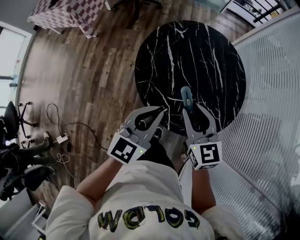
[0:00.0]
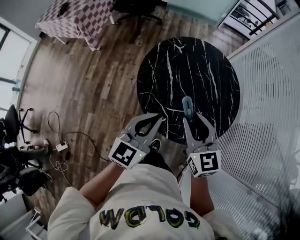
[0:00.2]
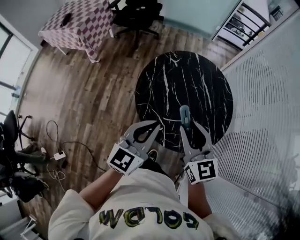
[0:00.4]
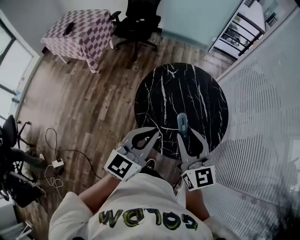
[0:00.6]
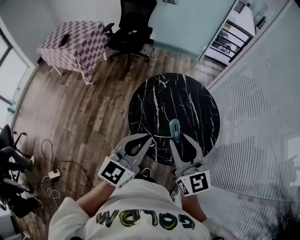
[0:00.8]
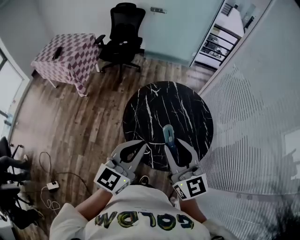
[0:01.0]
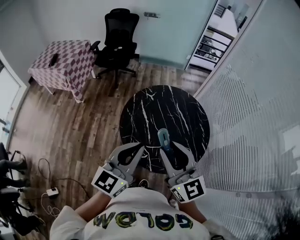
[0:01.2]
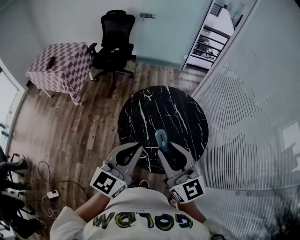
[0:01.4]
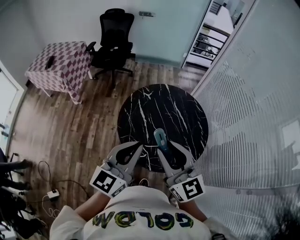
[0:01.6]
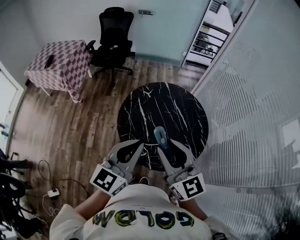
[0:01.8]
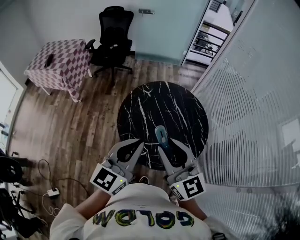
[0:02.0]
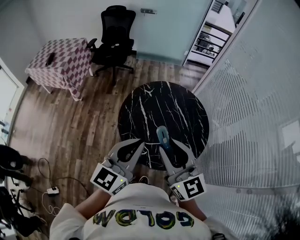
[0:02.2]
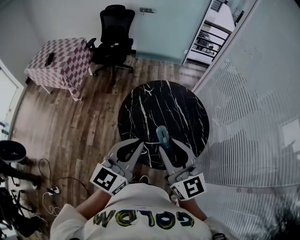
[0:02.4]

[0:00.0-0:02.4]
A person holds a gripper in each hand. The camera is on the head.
0:00.0 to 0:01.2: The grippers both shift upward by approximately 20 cm. The right gripper swivels about 30 degrees.
0:01.2 to 0:02.4: Neither gripper changes place.

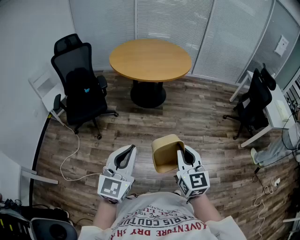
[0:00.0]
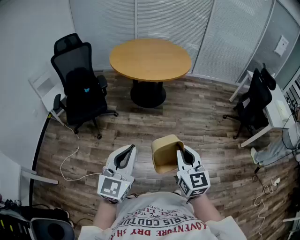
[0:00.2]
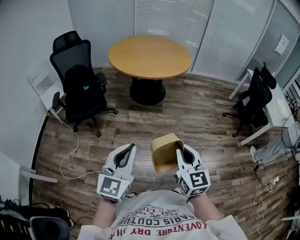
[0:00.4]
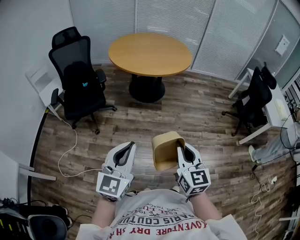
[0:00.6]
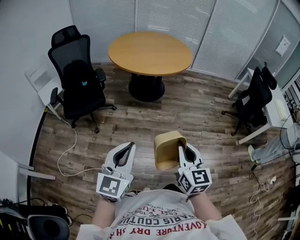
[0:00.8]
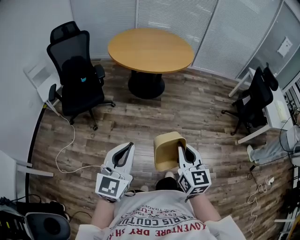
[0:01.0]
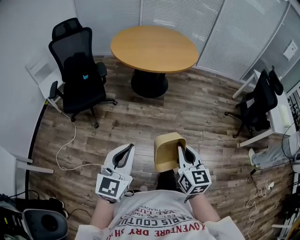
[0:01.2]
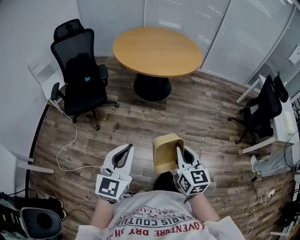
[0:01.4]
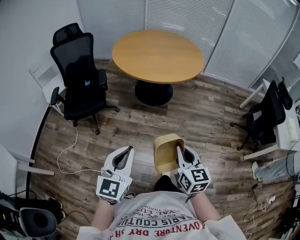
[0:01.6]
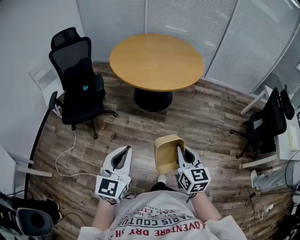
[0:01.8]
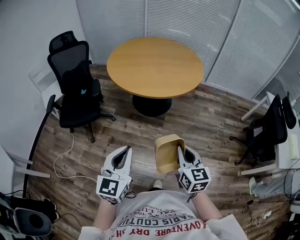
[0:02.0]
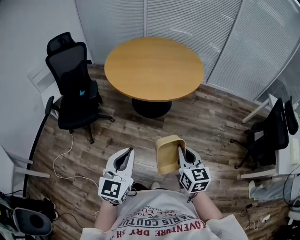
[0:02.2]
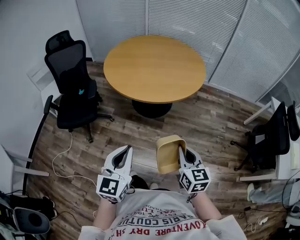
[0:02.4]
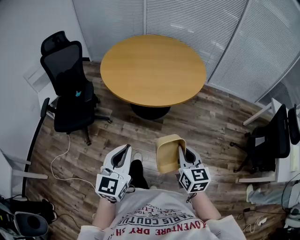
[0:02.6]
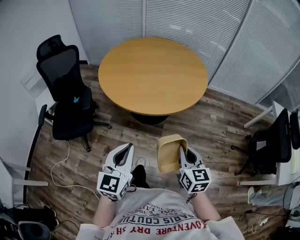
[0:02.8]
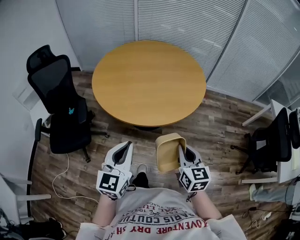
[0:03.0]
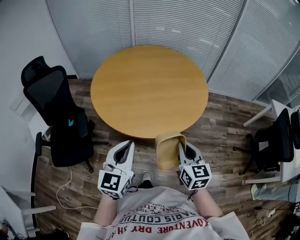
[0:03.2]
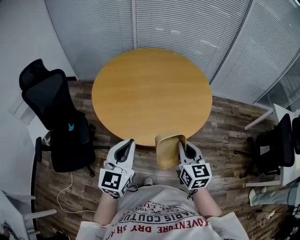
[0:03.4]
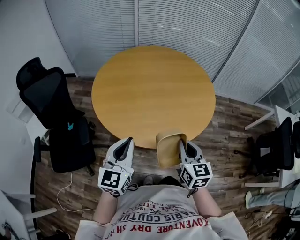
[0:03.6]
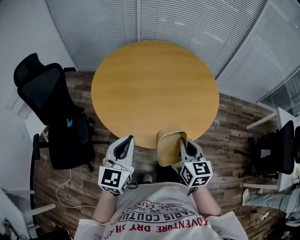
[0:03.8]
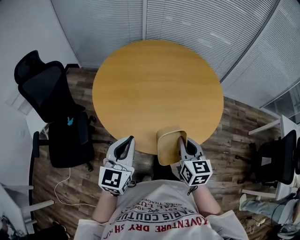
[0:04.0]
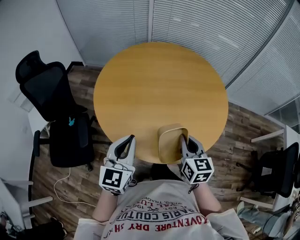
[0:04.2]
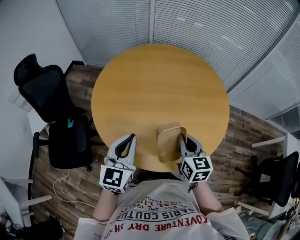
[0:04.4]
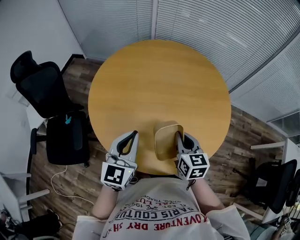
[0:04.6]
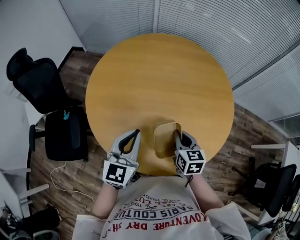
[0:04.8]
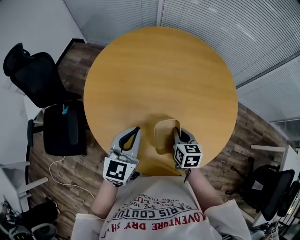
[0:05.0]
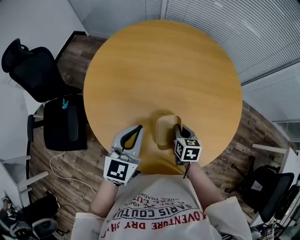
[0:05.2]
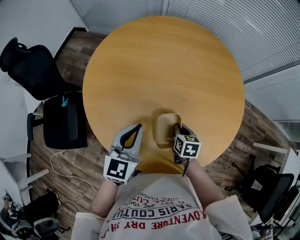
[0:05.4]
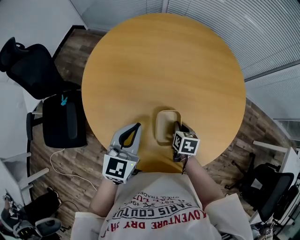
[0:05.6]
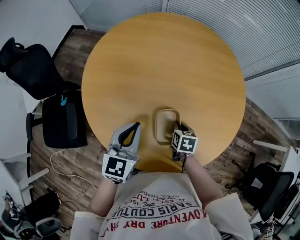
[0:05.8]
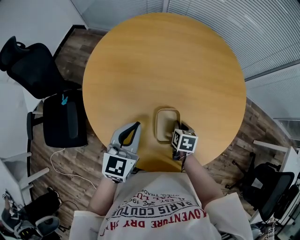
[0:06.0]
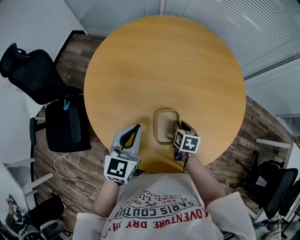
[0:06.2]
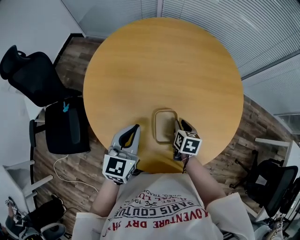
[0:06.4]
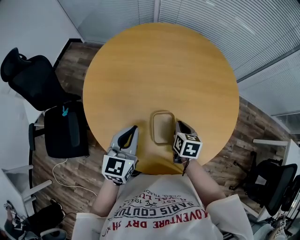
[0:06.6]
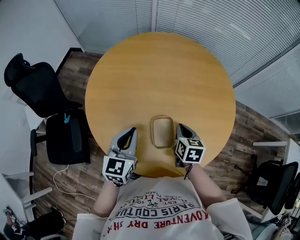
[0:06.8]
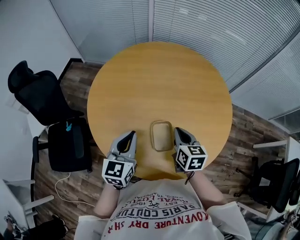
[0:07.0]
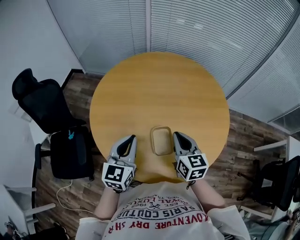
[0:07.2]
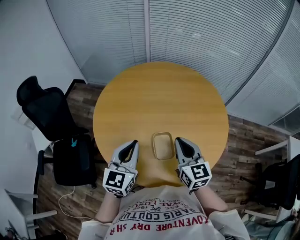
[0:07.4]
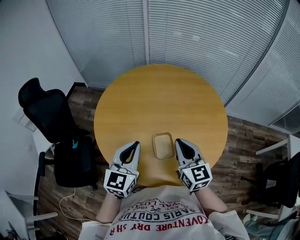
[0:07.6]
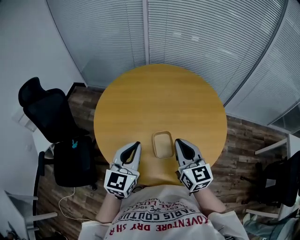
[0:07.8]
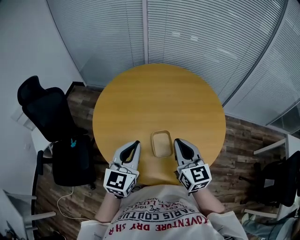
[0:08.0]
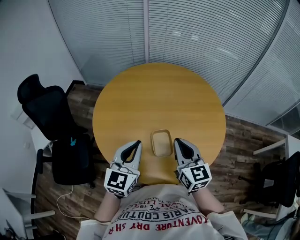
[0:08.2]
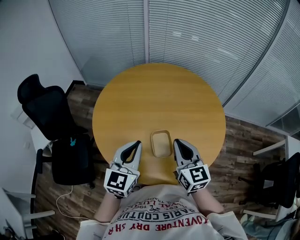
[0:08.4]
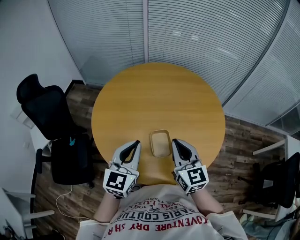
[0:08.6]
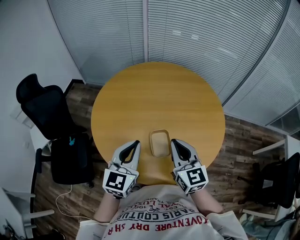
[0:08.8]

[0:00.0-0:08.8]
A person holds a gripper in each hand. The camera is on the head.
0:00.0 to 0:01.4: The left gripper heads forward, covering approximately 10 cm. The right gripper heads forward and downward, covering some 10 cm.
0:01.4 to 0:03.0: Both grippers are carried forward, roughly 50 cm.
0:03.0 to 0:04.4: Both grippers travel together forward, about 35 cm.
0:04.4 to 0:05.8: The right gripper is displaced downward and forward by approximately 25 cm, and tilts its fingers approximately 30 degrees downward. Meanwhile the left gripper moves forward and downward, approximately 15 cm.
0:05.8 to 0:07.4: The right gripper heads upward, covering approximately 30 cm, tilts its fingers about 50 degrees upward, and opens and closes again; the left gripper travels upward and backward by roughly 15 cm.
0:07.4 to 0:08.8: The grippers move only a little.

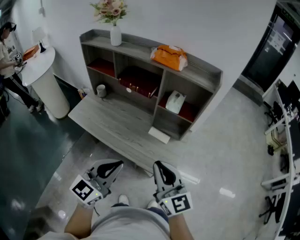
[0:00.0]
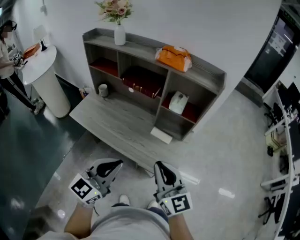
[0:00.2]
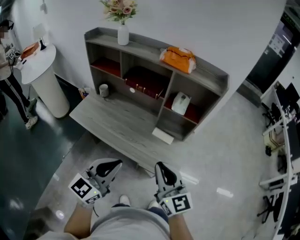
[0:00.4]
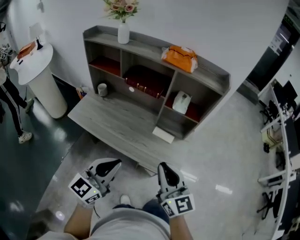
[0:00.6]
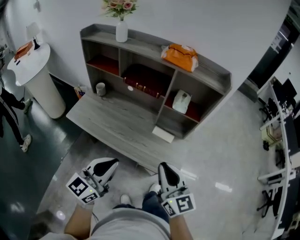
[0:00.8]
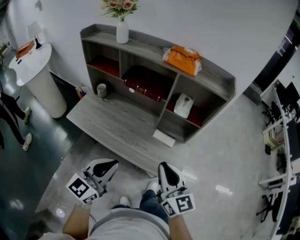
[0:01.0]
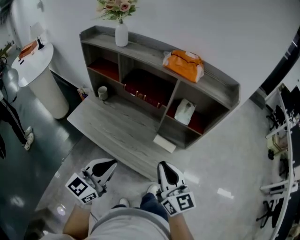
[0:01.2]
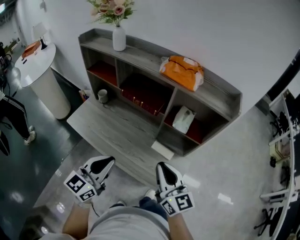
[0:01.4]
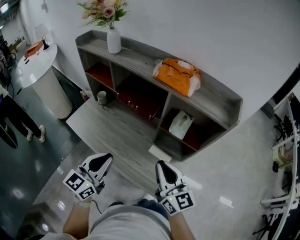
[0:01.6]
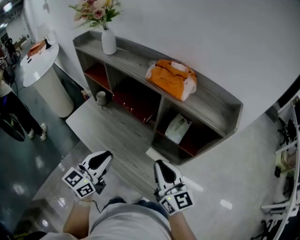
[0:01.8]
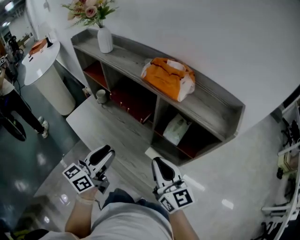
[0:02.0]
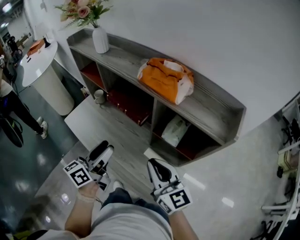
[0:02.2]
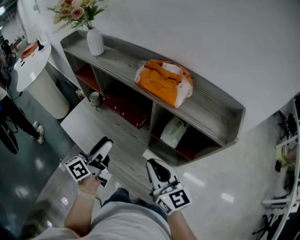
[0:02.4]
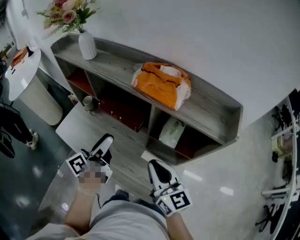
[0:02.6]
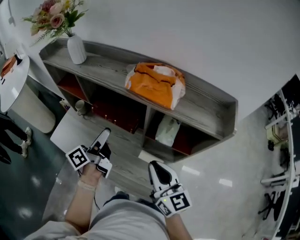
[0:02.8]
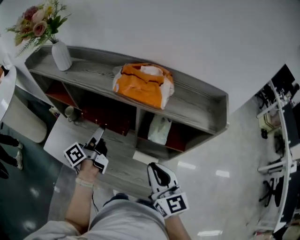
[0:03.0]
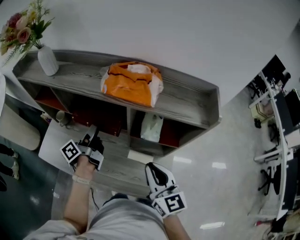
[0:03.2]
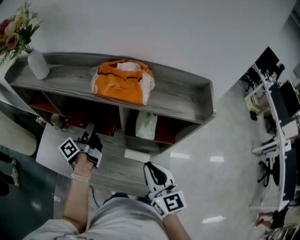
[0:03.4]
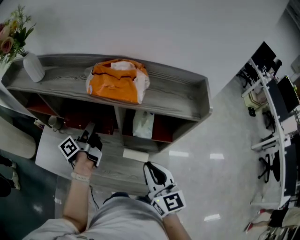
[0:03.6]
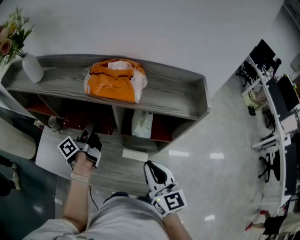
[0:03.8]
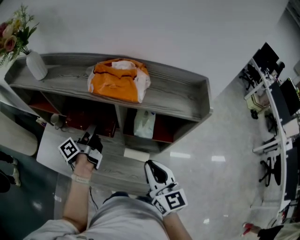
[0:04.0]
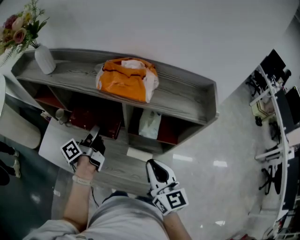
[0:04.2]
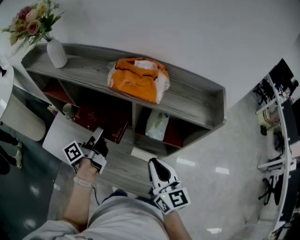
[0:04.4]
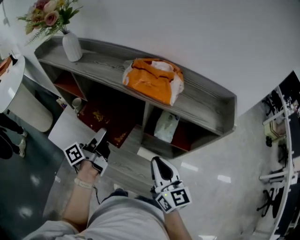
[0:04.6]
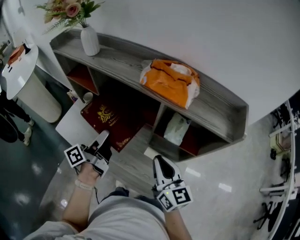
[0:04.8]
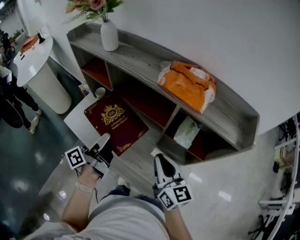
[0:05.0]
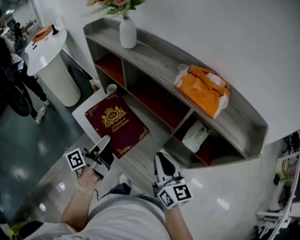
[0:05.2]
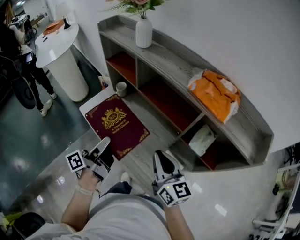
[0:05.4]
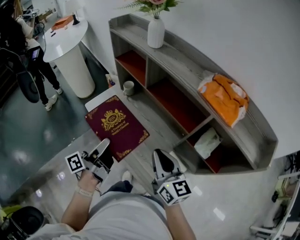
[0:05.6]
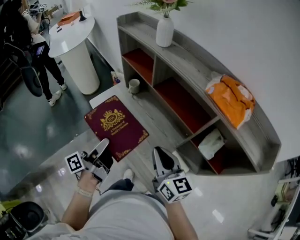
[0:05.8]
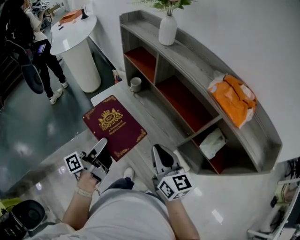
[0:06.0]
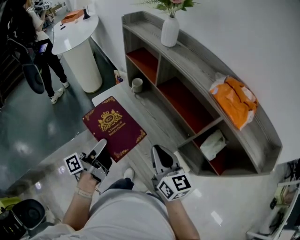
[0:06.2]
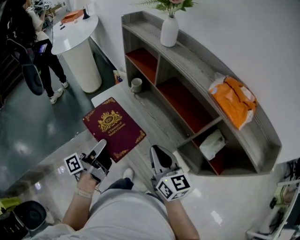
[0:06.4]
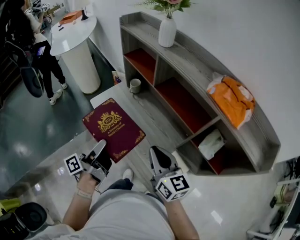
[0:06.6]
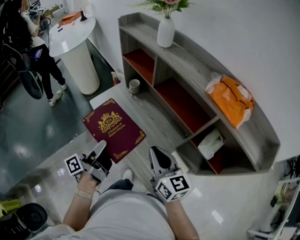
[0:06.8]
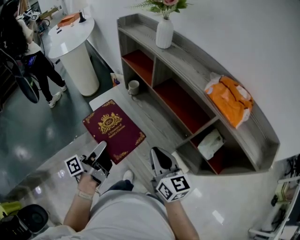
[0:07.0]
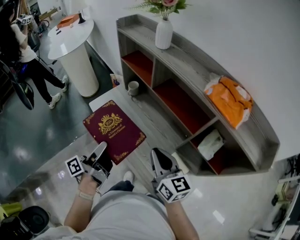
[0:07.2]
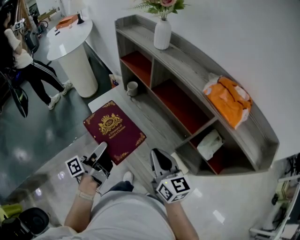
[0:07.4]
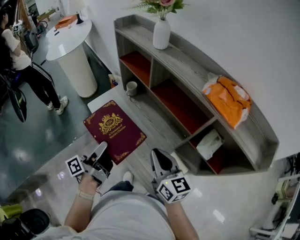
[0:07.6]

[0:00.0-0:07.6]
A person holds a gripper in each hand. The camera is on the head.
0:00.0 to 0:01.6: Both grippers travel together forward, roughly 15 cm.
0:01.6 to 0:03.0: The right gripper shifts roughly 5 cm forward. Meanwhile the left gripper shifts approximately 25 cm forward, rotates around the line of its fingers by approximately 60 degrees, counterclockwise from behind, and opens up.
0:04.6 to 0:06.0: The left gripper moves about 25 cm, and swivels some 30 degrees; the right gripper moves about 20 cm, and swivels about 30 degrees.
0:06.0 to 0:07.6: The two grippers keep their place.

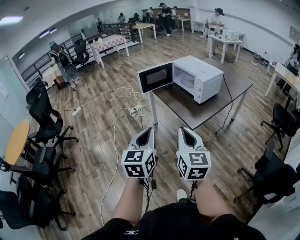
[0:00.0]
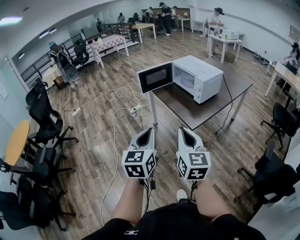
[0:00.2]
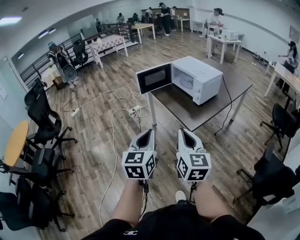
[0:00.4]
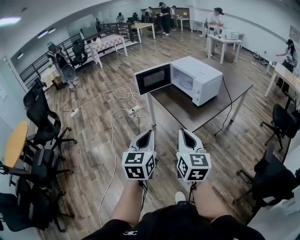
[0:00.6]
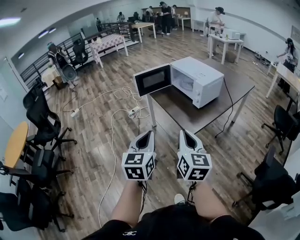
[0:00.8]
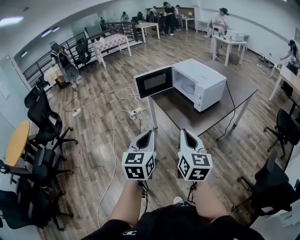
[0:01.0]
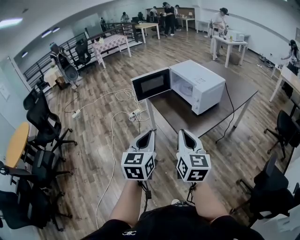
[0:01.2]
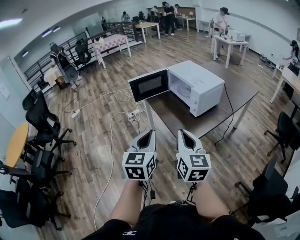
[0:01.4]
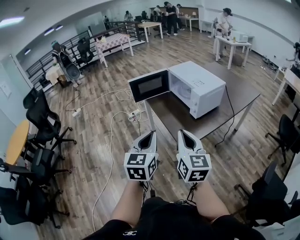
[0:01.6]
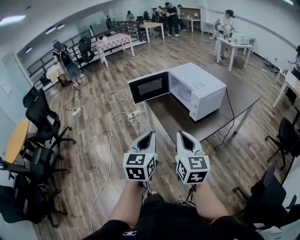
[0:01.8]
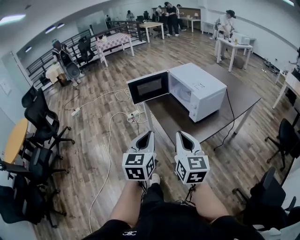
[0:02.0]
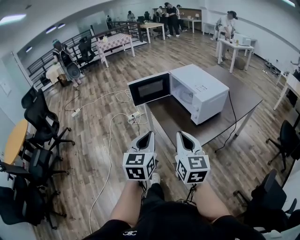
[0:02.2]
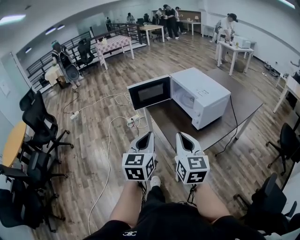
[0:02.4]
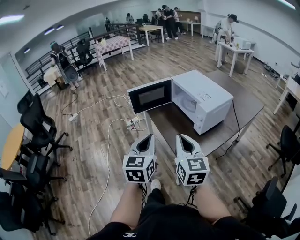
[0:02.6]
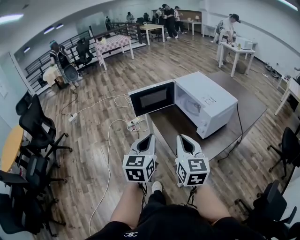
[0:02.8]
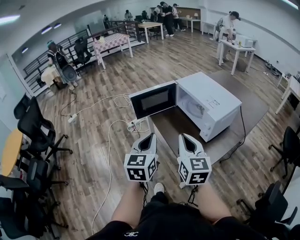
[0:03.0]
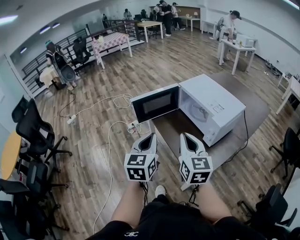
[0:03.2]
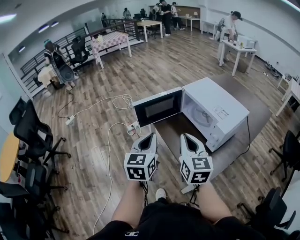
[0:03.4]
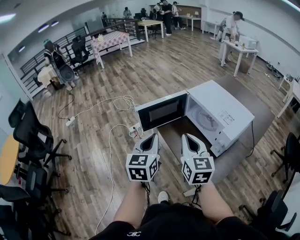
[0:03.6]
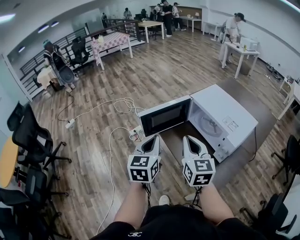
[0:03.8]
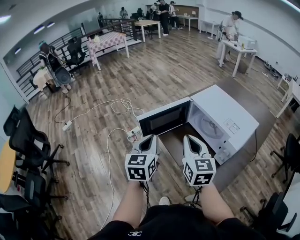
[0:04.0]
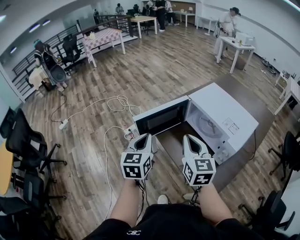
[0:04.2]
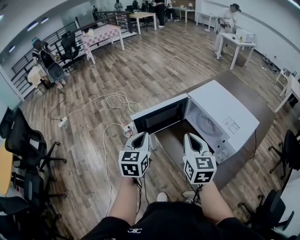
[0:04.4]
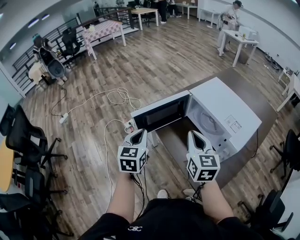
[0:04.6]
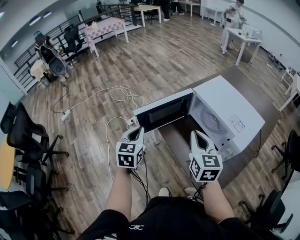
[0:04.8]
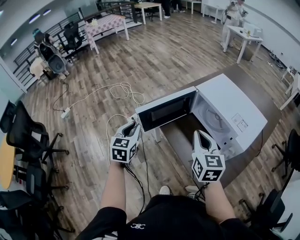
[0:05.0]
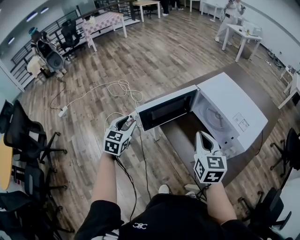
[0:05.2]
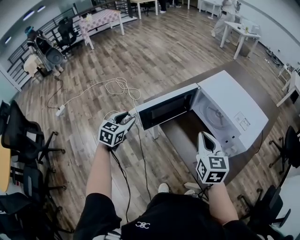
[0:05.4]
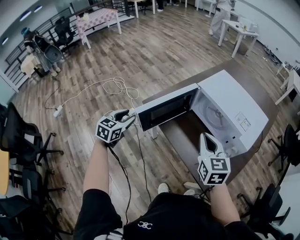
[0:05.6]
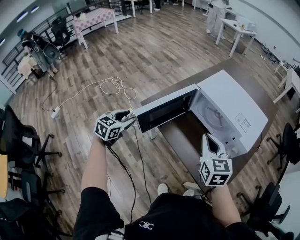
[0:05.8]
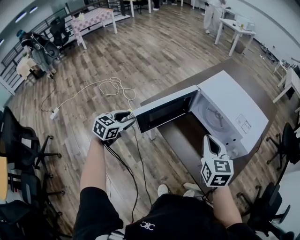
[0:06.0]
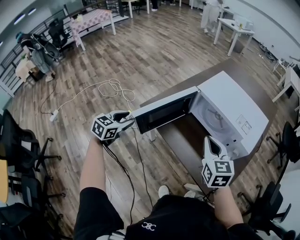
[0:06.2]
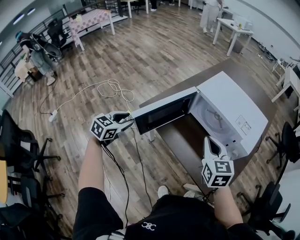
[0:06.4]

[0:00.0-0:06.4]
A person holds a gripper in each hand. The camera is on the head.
0:00.0 to 0:01.6: The two grippers go some 20 cm forward and to the right.
0:01.6 to 0:03.2: Both grippers move forward, approximately 25 cm.
0:03.2 to 0:04.8: The left gripper is displaced forward and to the left by some 25 cm; the right gripper goes roughly 20 cm forward.
0:04.8 to 0:06.4: The left gripper travels forward, to the left and downward by some 15 cm, swivels about 40 degrees, and opens, while the right gripper ends up some 5 cm from where it was.
